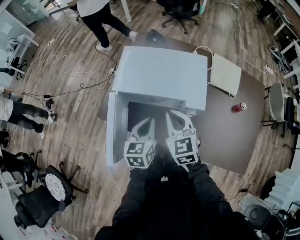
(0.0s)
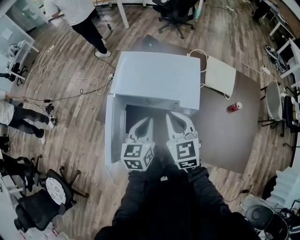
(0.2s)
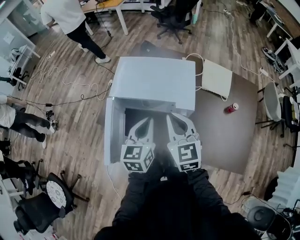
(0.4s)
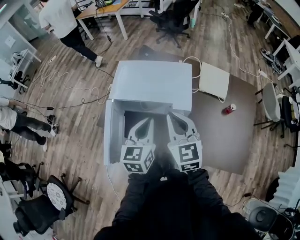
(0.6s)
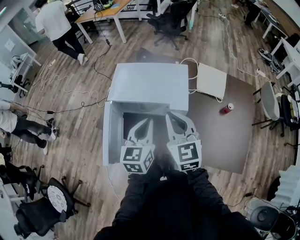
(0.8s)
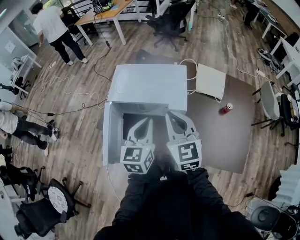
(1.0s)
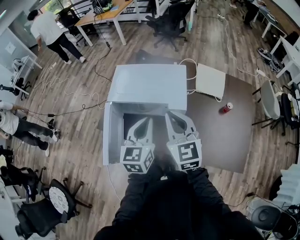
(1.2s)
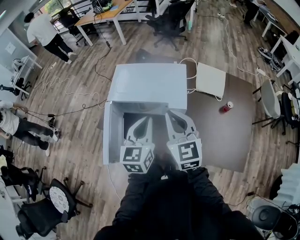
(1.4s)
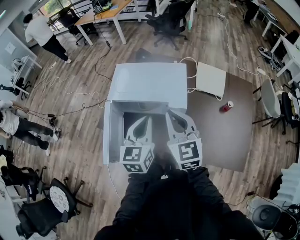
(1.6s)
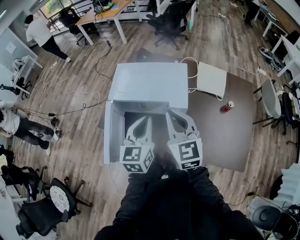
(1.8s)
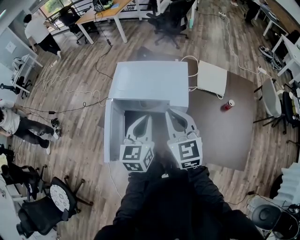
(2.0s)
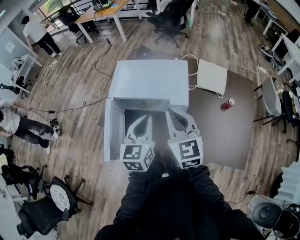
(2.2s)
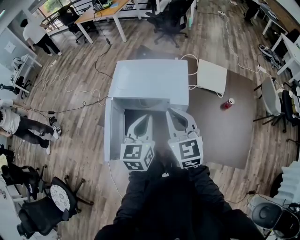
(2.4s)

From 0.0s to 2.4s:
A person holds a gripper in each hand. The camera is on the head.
From 0.0s to 1.2s: The right gripper is displaced upward, to the right and backward by some 15 cm. Meanwhile the left gripper travels upward and to the right by about 15 cm.
From 1.2s to 2.4s: Both grippers stay about where they are.

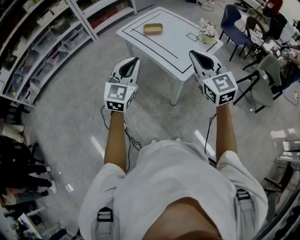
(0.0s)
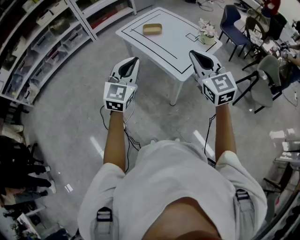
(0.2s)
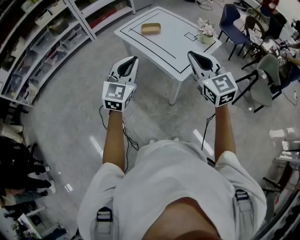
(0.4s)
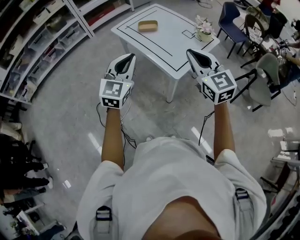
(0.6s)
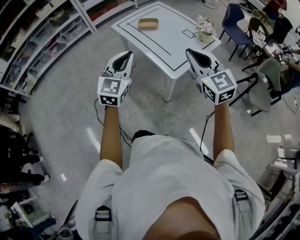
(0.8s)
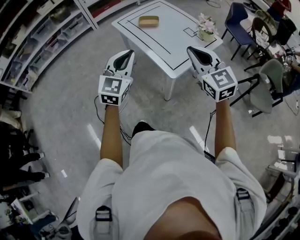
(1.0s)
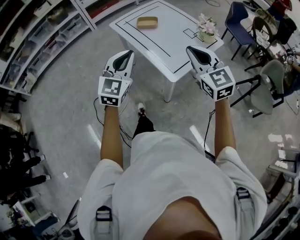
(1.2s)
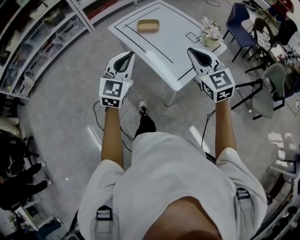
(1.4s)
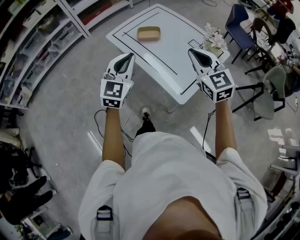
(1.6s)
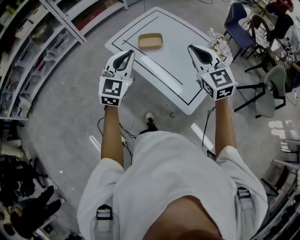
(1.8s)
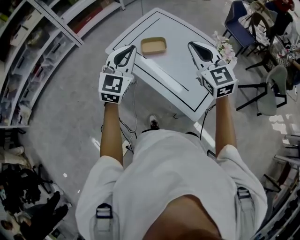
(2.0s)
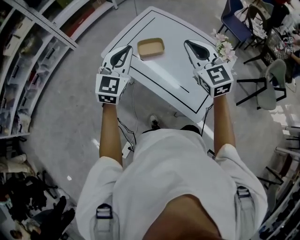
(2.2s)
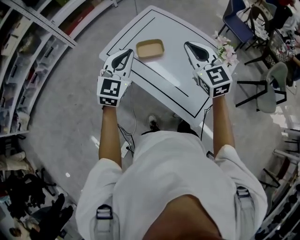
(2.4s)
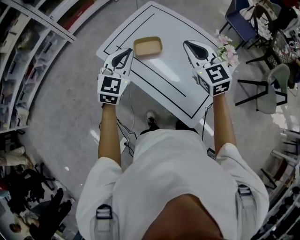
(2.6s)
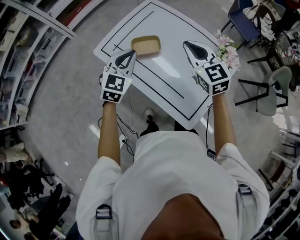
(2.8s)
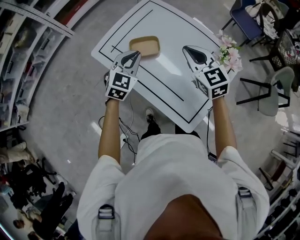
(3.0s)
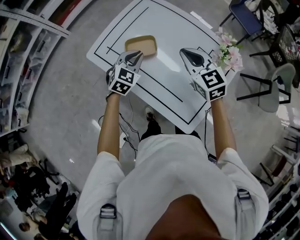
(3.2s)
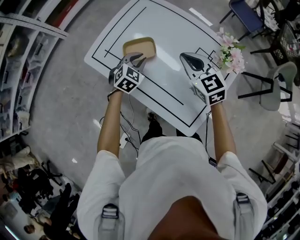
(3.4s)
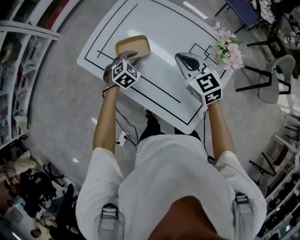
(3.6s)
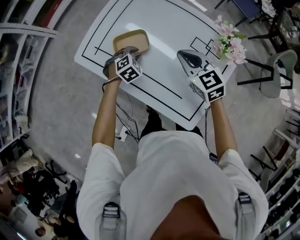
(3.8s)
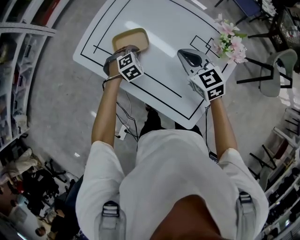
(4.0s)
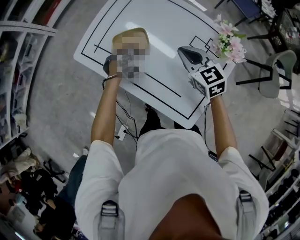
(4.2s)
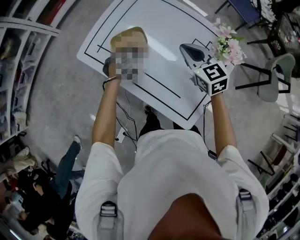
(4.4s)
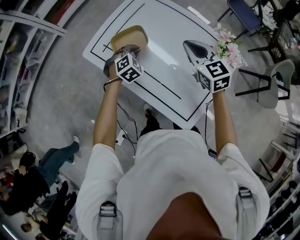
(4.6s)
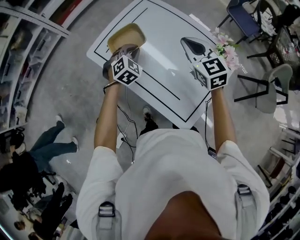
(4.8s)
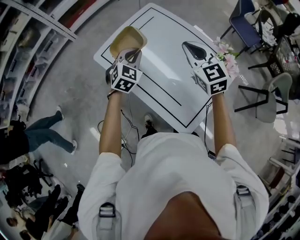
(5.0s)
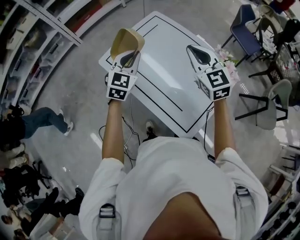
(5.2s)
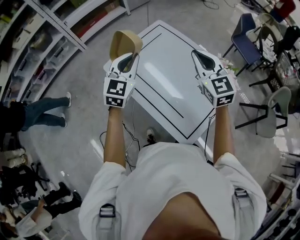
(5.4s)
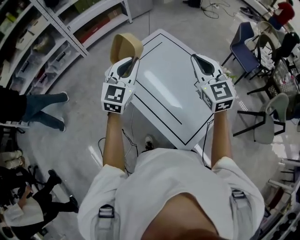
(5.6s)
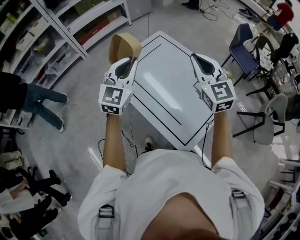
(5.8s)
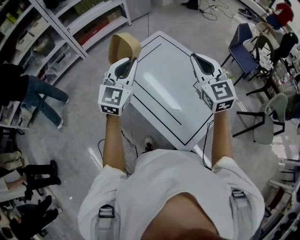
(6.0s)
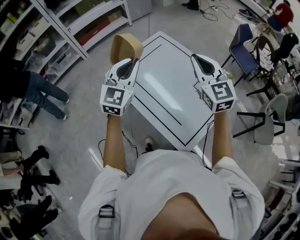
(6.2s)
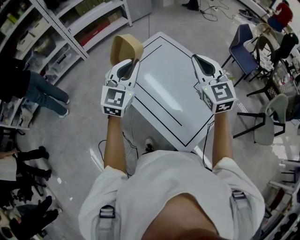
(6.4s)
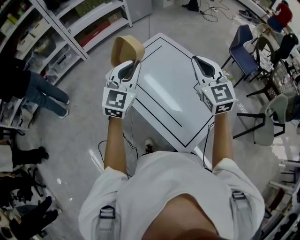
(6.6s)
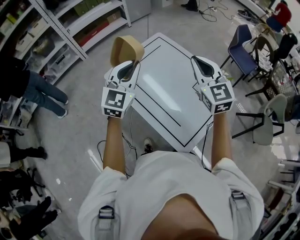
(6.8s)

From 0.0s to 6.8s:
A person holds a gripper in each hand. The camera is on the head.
From 0.0s to 1.4s: The right gripper travels forward, downward and to the right by some 15 cm. The left gripper heads forward and to the right, covering some 15 cm.
From 1.4s to 2.8s: Both grippers move forward, some 40 cm.
From 2.8s to 4.0s: The left gripper travels downward by about 30 cm, and angles its fingers downward, by approximately 40 degrees. The right gripper goes about 15 cm downward.
From 4.0s to 5.4s: The right gripper moves upward, some 25 cm, and swivels about 30 degrees; the left gripper is displaced upward by some 35 cm, and tilts its fingers approximately 50 degrees upward.
From 5.4s to 6.8s: The left gripper shifts roughly 5 cm upward.

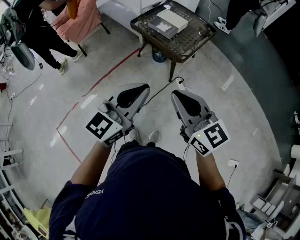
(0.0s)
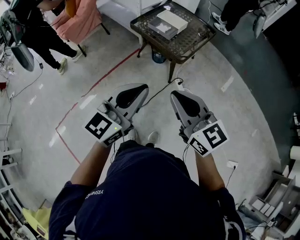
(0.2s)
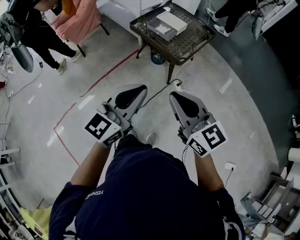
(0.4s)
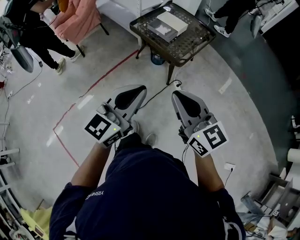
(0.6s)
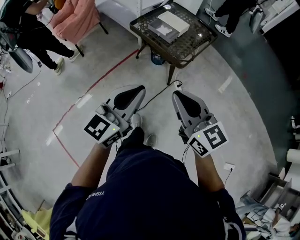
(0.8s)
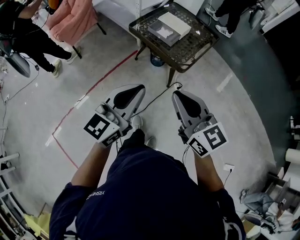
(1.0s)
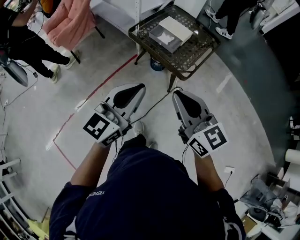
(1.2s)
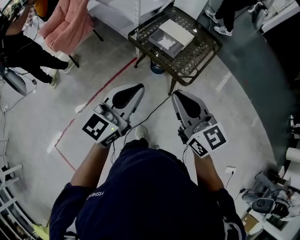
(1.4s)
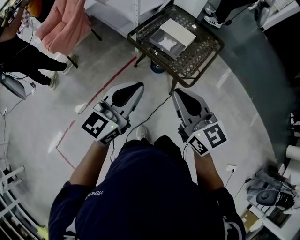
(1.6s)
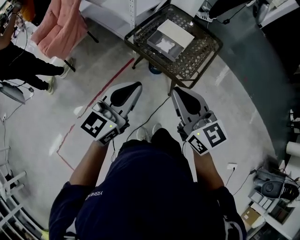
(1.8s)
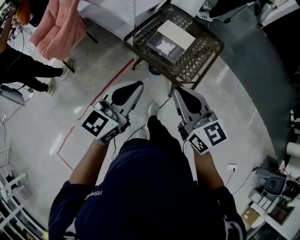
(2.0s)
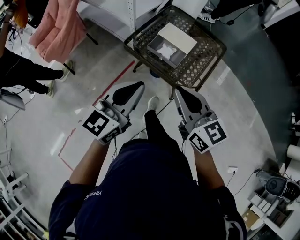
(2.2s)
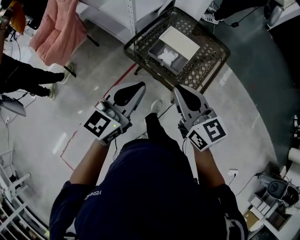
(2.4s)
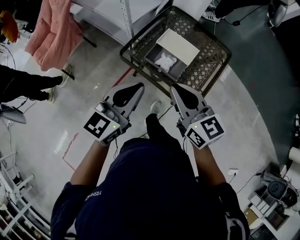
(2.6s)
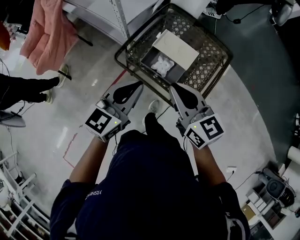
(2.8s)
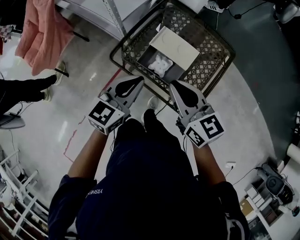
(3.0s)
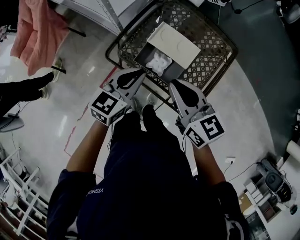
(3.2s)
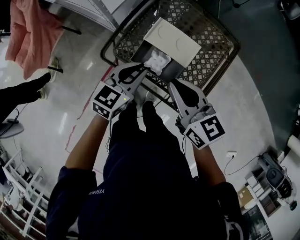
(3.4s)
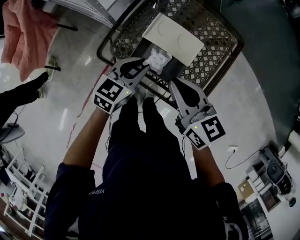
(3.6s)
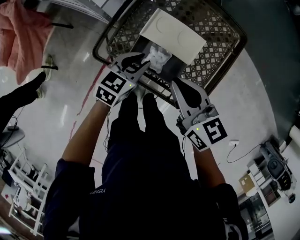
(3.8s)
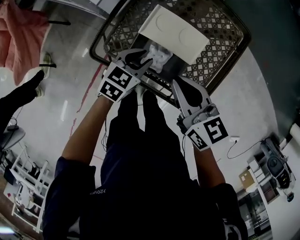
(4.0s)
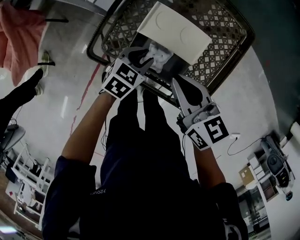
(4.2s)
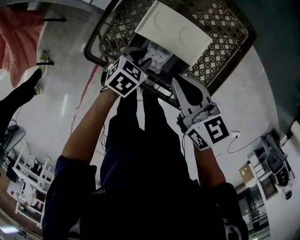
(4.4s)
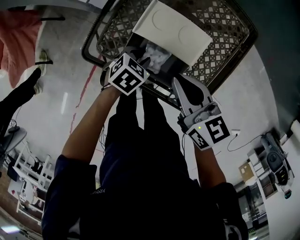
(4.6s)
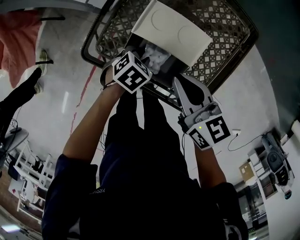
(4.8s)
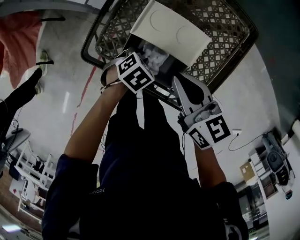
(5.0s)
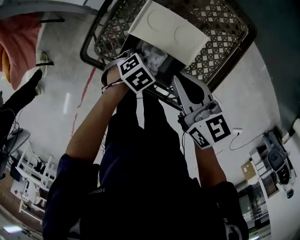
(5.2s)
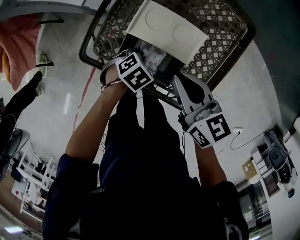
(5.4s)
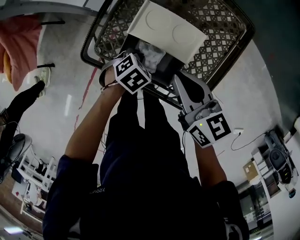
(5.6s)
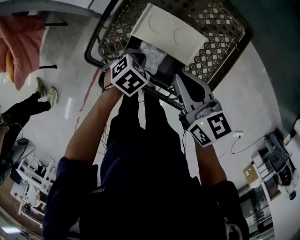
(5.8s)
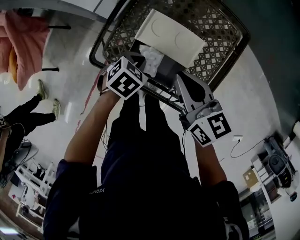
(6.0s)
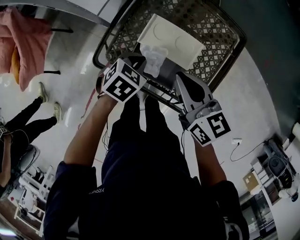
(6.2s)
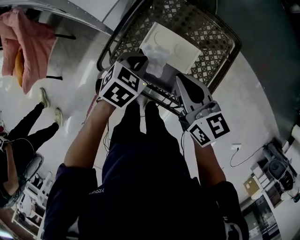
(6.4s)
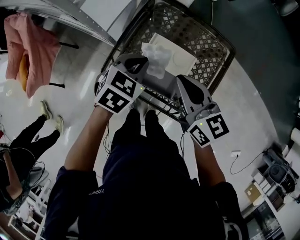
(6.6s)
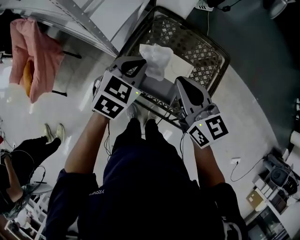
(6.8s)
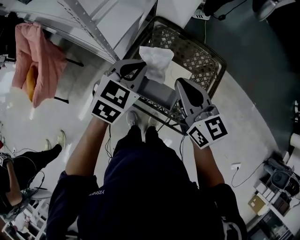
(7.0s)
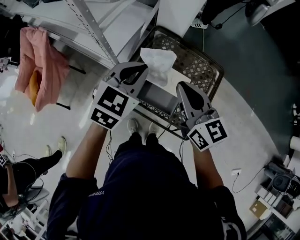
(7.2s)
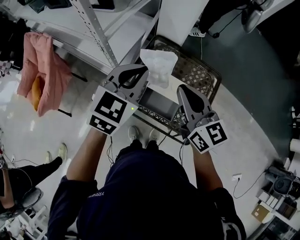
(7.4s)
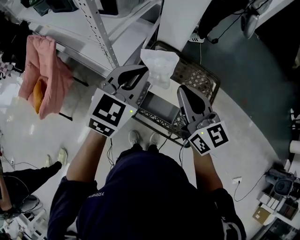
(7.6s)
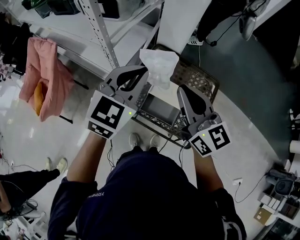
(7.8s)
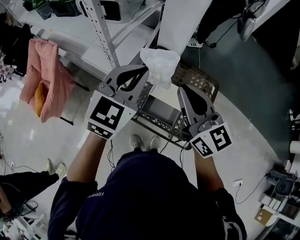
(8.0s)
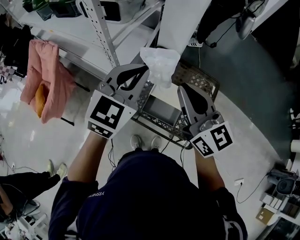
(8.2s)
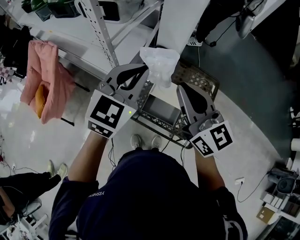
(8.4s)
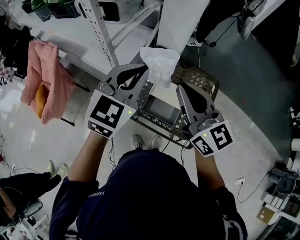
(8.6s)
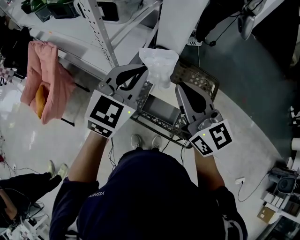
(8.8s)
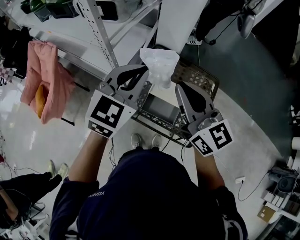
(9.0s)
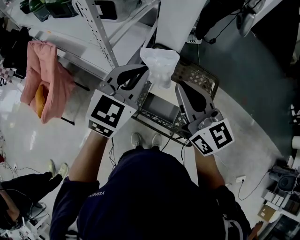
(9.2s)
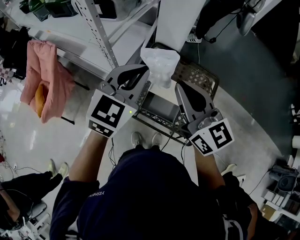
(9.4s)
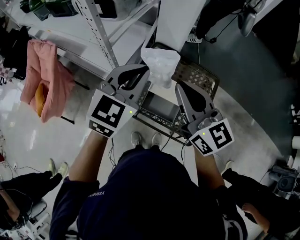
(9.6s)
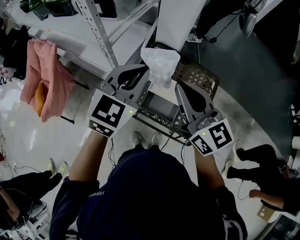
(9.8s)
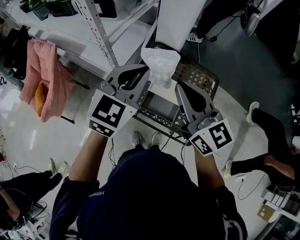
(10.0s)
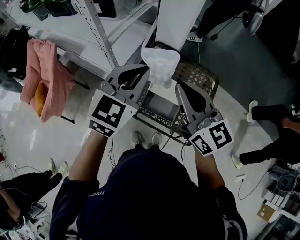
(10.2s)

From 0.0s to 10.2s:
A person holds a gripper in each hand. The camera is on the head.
From 0.0s to 1.4s: The two grippers go approximately 20 cm forward.
From 1.4s to 3.0s: Both grippers travel together forward, some 40 cm. The left gripper rotates roughly 20 degrees.
From 3.0s to 4.4s: The left gripper is displaced downward and forward by approximately 35 cm, tilts its fingers roughly 40 degrees downward, and opens, while the right gripper goes roughly 25 cm downward and forward.
From 4.4s to 5.8s: The left gripper closes.
From 5.8s to 7.2s: The right gripper shifts roughly 25 cm upward, and changes its angle by approximately 30 degrees. The left gripper heads upward, covering roughly 40 cm, and tilts its fingers some 40 degrees upward.
From 7.2s to 8.8s: The grippers both shift upward by roughly 10 cm.
From 8.8s to 10.2s: The grippers make only small movements.

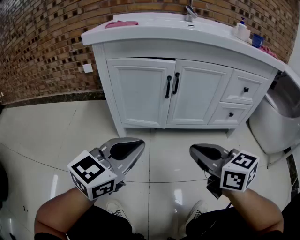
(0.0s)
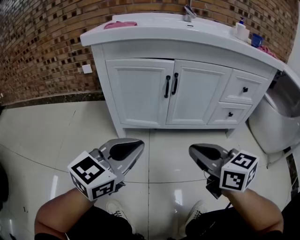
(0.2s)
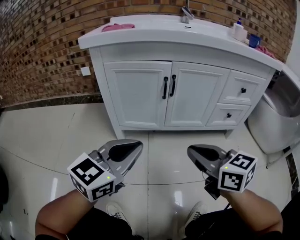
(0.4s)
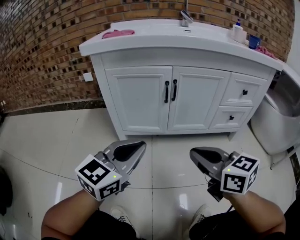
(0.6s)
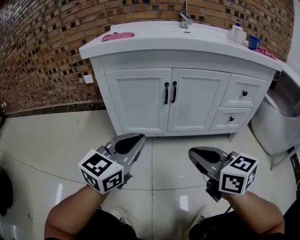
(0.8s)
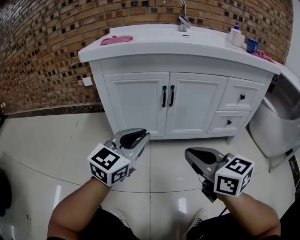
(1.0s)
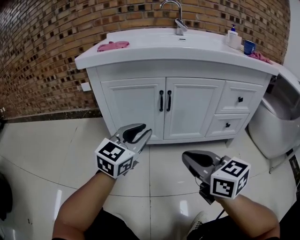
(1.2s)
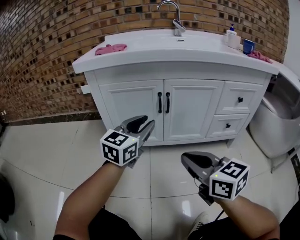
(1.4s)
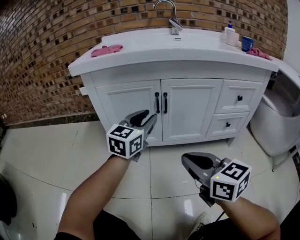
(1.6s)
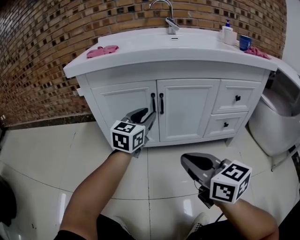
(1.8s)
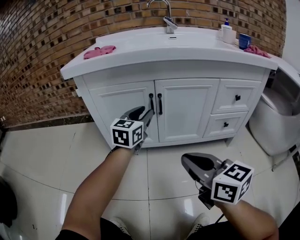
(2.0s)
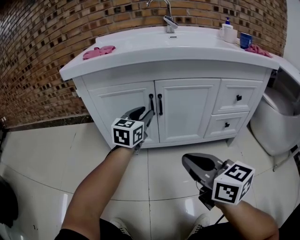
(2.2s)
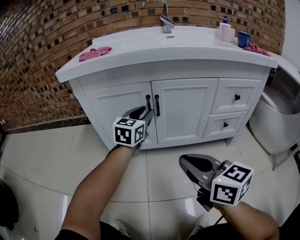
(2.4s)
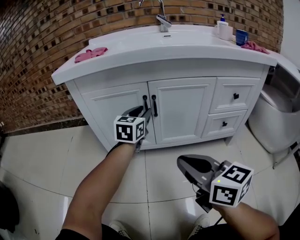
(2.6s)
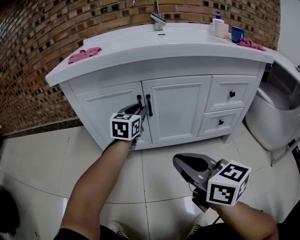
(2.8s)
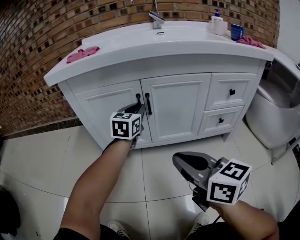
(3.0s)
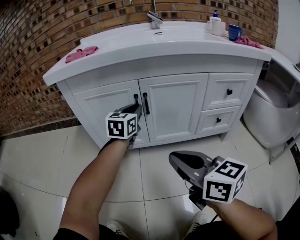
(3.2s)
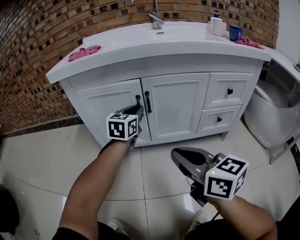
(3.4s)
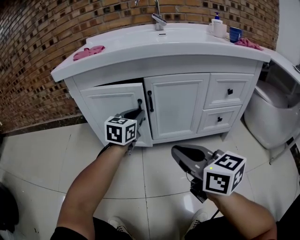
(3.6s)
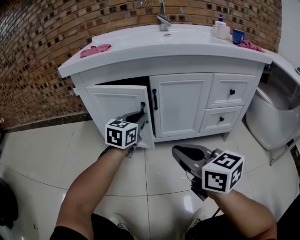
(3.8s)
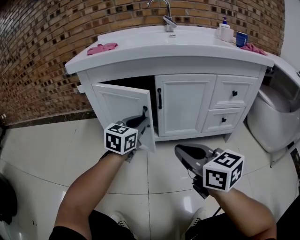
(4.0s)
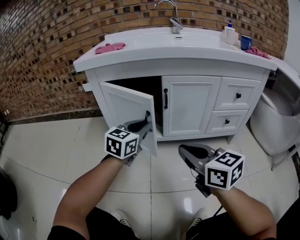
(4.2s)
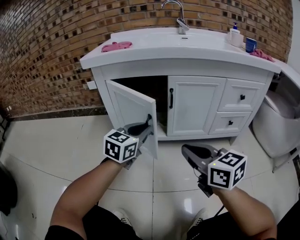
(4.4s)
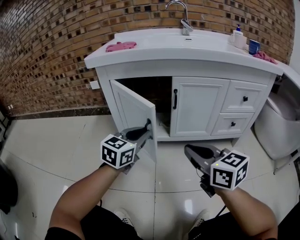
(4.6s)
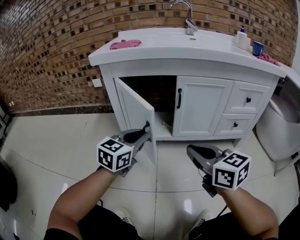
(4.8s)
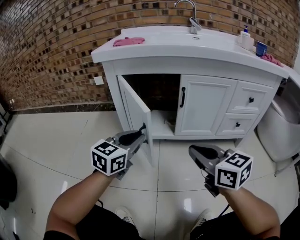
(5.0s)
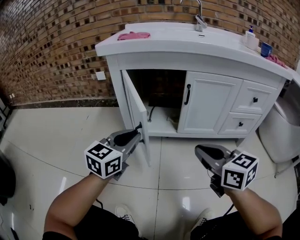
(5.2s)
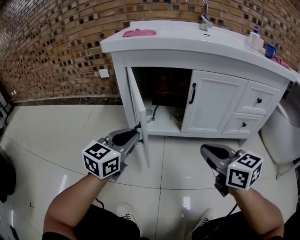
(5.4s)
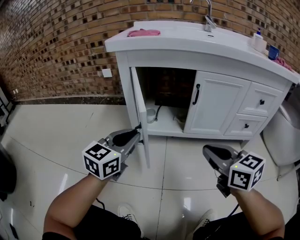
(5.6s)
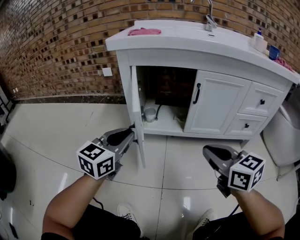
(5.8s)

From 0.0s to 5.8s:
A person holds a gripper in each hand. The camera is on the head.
From 0.0s to 1.4s: The left gripper goes some 15 cm forward, and opens.
From 1.4s to 2.8s: The left gripper heads forward and to the right, covering about 15 cm.
From 2.8s to 4.4s: The left gripper is displaced backward and to the left by roughly 20 cm, and closes its fingers.
From 4.4s to 5.8s: The left gripper shifts about 15 cm to the left.
